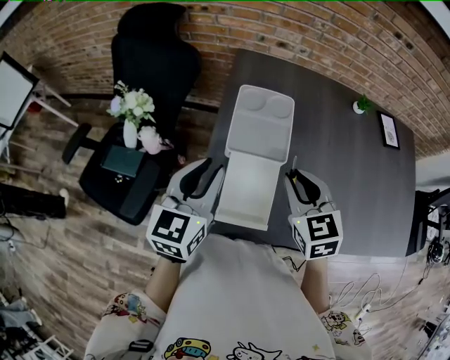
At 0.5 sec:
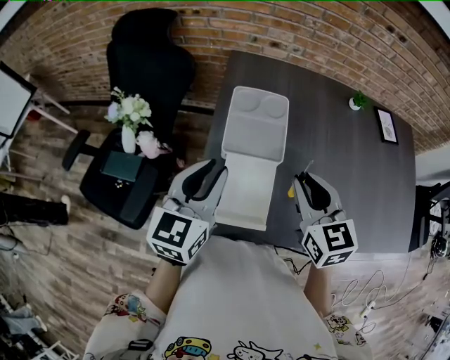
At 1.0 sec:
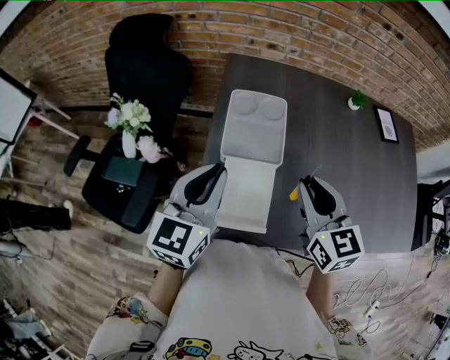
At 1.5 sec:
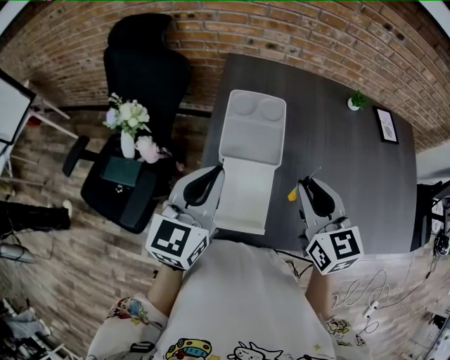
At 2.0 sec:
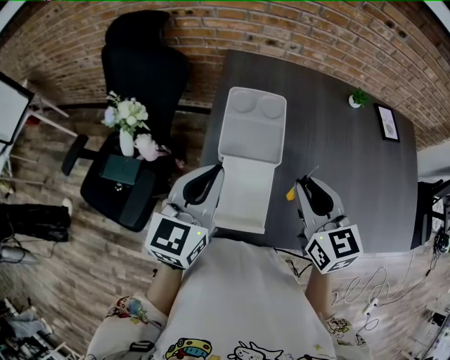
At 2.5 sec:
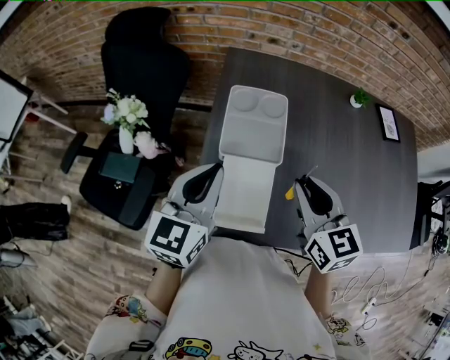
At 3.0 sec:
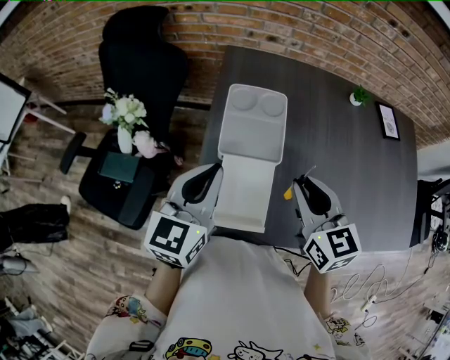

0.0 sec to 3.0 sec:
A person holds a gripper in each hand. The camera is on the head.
0.0 sec to 1.5 sec: The right gripper ends up roughly 5 cm from where it was. The left gripper closes.
1.5 sec to 3.0 sec: The grippers stay close to where they were, moving slightly.

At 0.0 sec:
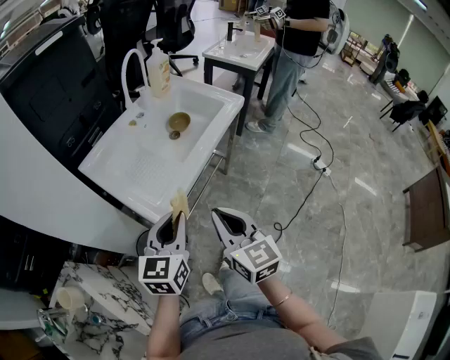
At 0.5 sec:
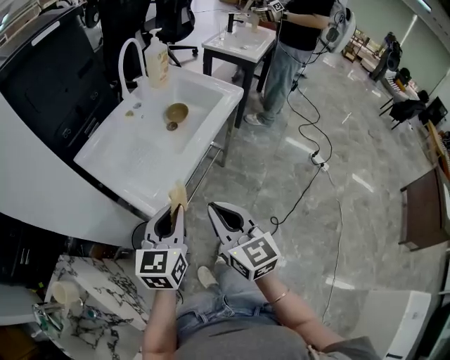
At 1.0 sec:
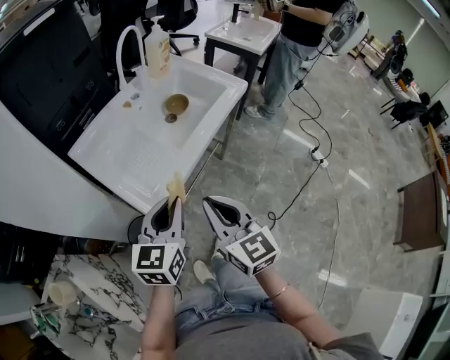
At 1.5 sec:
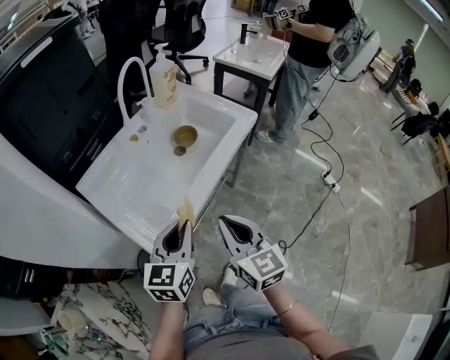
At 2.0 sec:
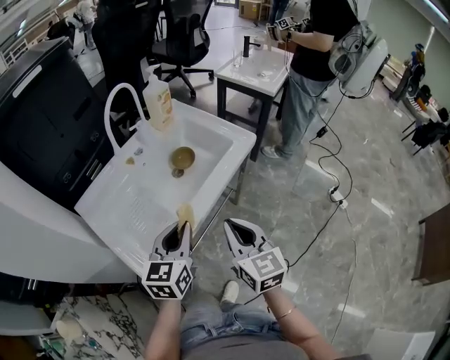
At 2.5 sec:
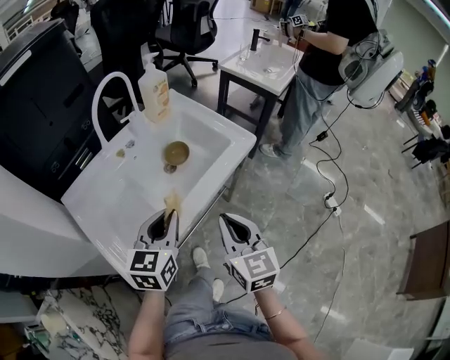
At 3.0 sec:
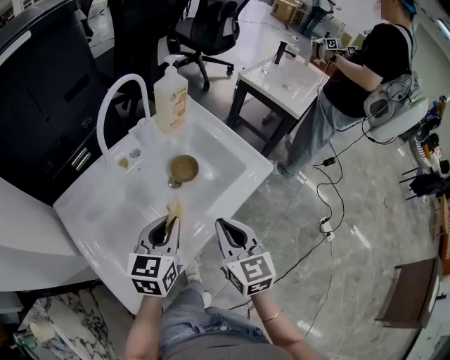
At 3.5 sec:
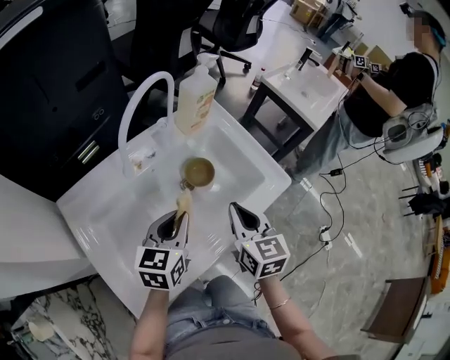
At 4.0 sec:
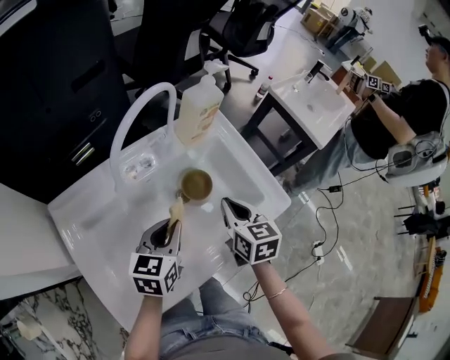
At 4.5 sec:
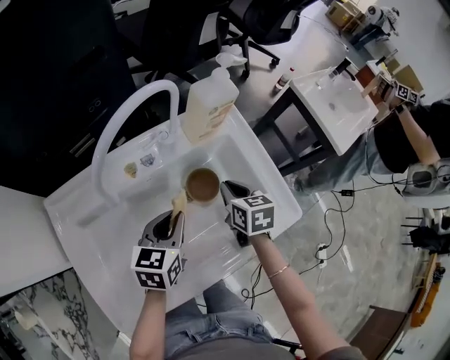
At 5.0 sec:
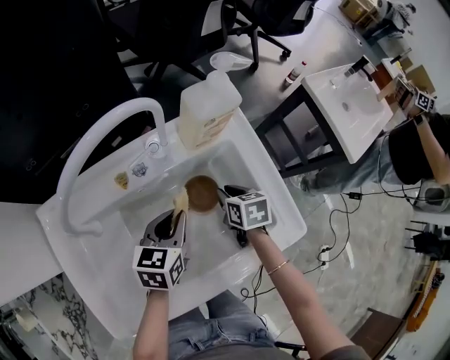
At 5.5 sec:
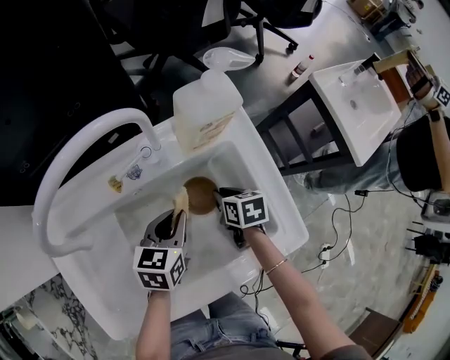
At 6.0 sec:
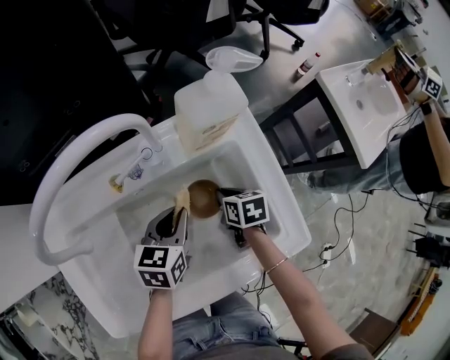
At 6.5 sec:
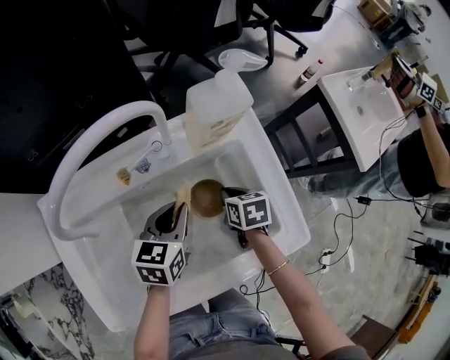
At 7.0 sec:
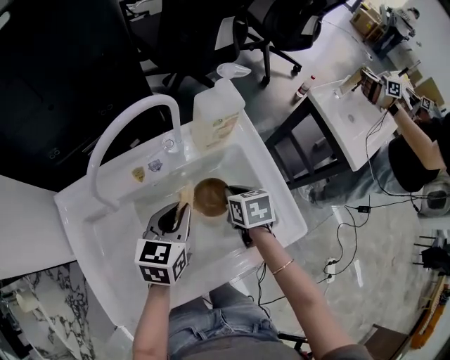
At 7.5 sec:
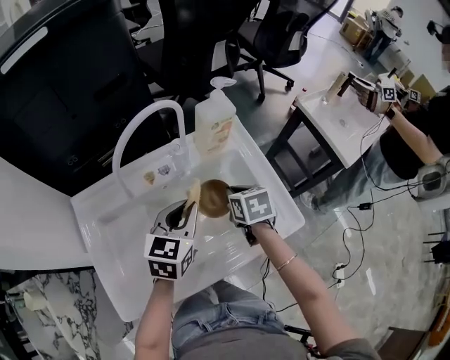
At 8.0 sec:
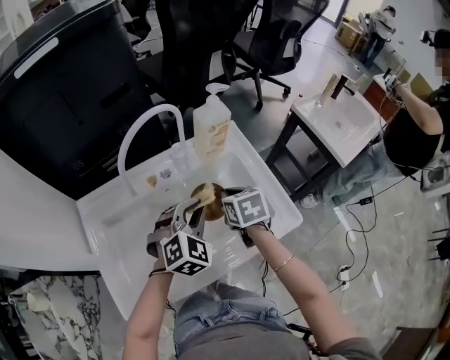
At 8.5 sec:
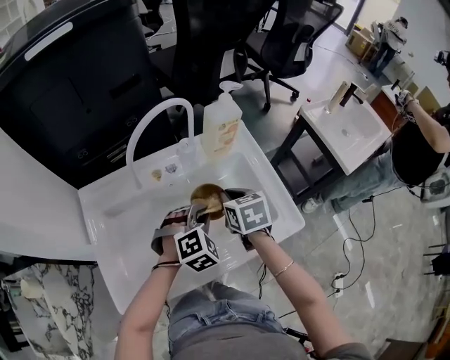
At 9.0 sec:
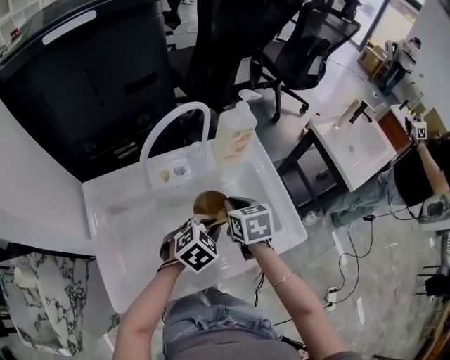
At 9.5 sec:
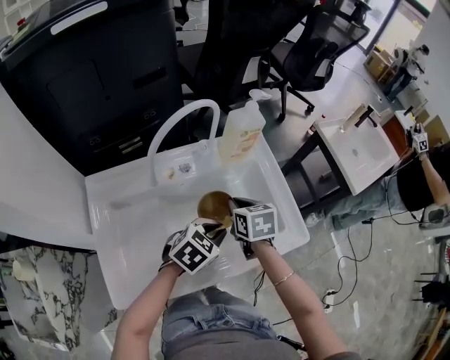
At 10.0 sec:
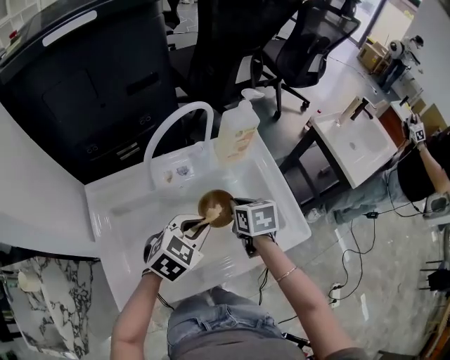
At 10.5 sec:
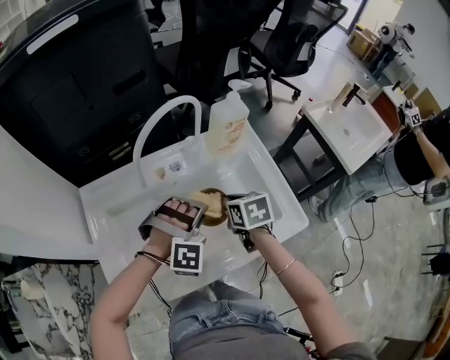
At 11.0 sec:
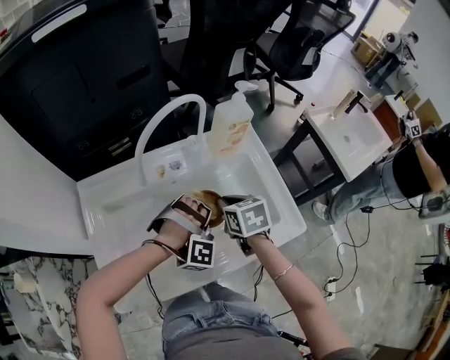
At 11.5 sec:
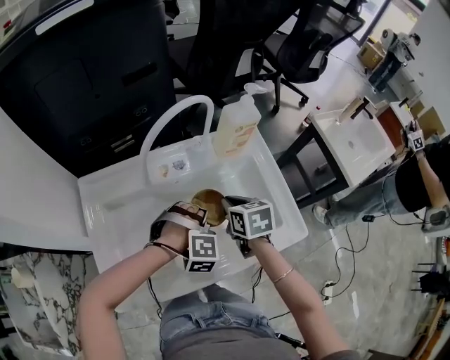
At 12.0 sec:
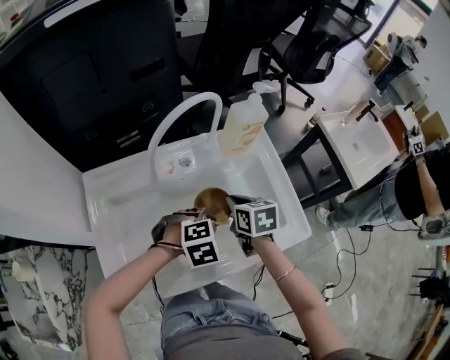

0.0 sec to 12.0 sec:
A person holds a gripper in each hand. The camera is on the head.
0.0 sec to 2.0 sec: The two grippers go about 20 cm forward and to the right.
2.0 sec to 4.0 sec: The two grippers go about 25 cm forward. The right gripper changes its angle by roughly 20 degrees.
4.0 sec to 6.0 sec: The right gripper heads downward and forward, covering roughly 25 cm, and rotates approximately 30 degrees. The left gripper goes some 15 cm forward, downward and to the right.
6.0 sec to 8.0 sec: The right gripper travels upward by approximately 20 cm, and swivels roughly 20 degrees. The left gripper is displaced upward and backward by approximately 15 cm, and rotates around the line of its fingers by about 60 degrees, clockwise from behind.
8.0 sec to 10.0 sec: The left gripper moves about 5 cm, and swivels roughly 30 degrees.
10.0 sec to 12.0 sec: The left gripper moves downward, roughly 5 cm, and turns by roughly 30 degrees.

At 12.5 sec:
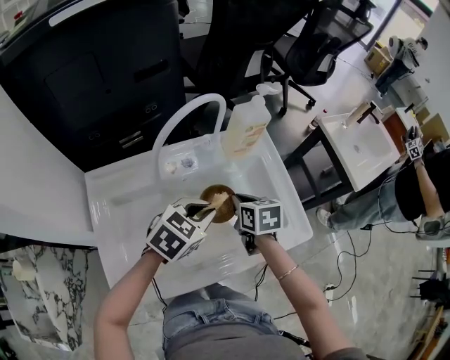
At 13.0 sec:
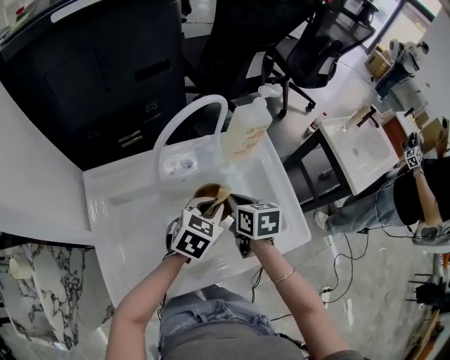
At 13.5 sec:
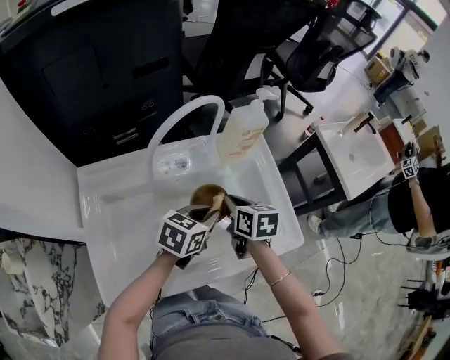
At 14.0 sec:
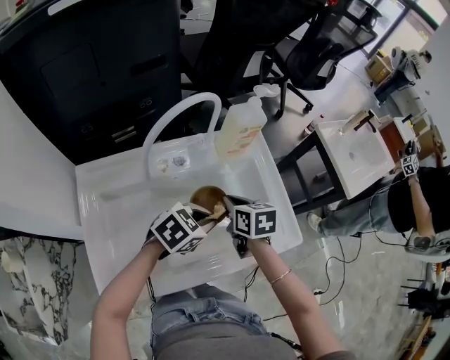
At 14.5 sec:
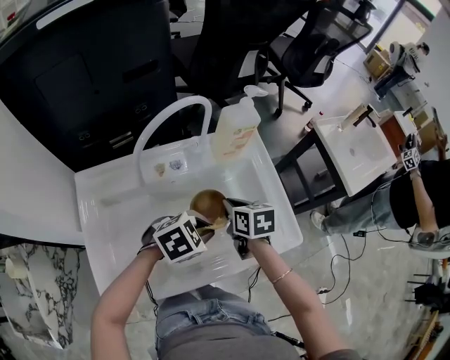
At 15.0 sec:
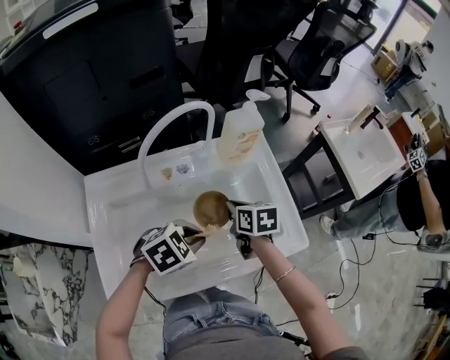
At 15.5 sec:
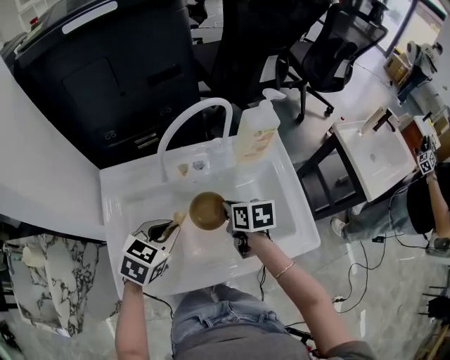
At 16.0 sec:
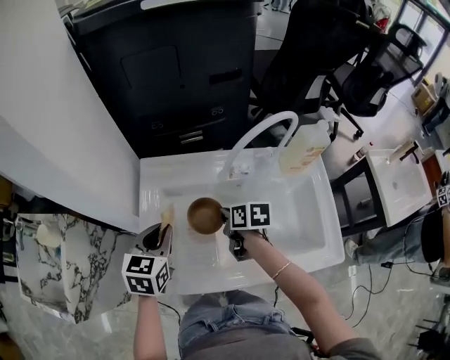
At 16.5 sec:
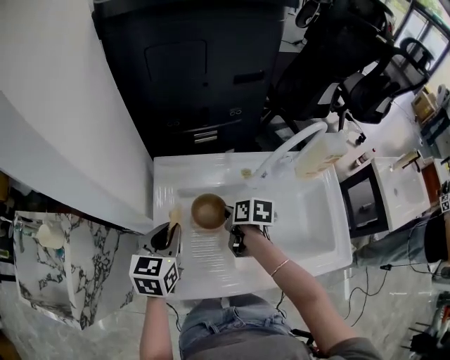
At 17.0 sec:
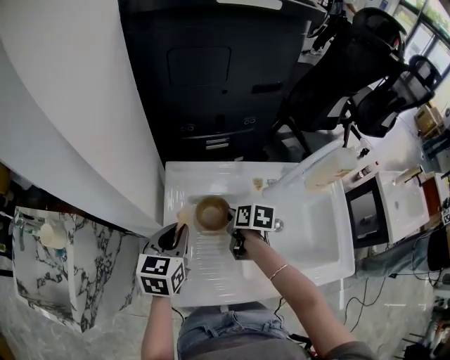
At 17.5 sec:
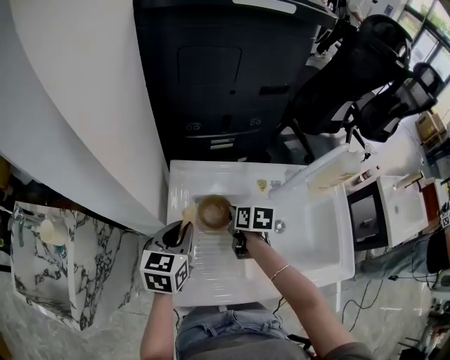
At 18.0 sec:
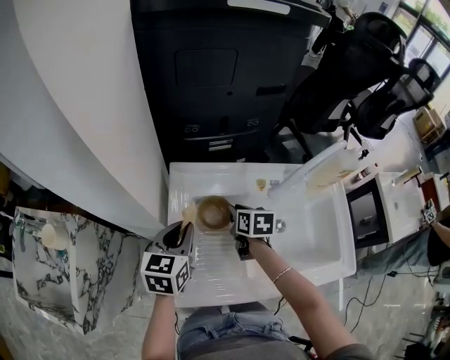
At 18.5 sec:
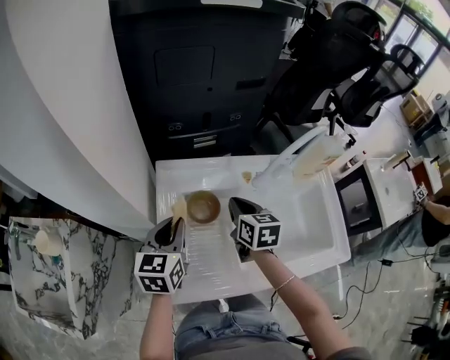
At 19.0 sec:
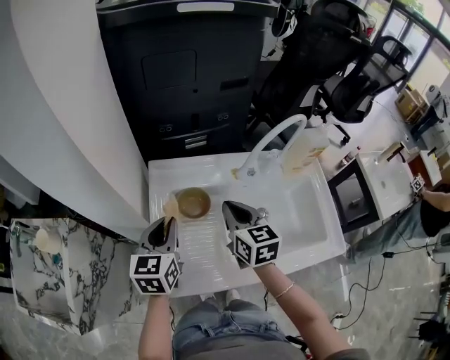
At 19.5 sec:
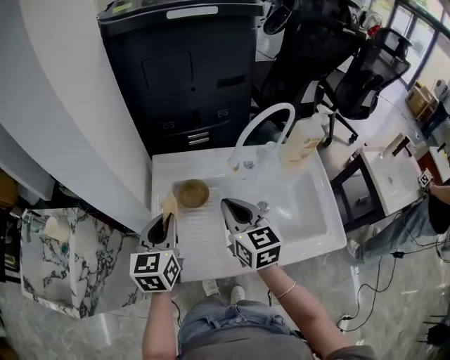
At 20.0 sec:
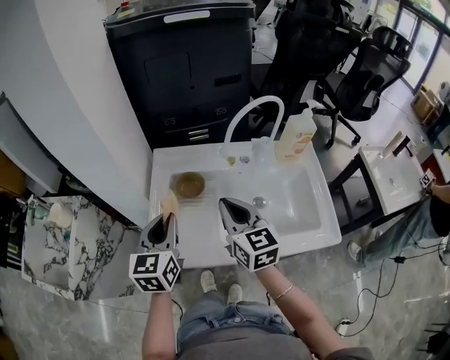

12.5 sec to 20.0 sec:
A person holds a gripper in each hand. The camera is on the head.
12.5 sec to 14.5 sec: The left gripper is displaced to the right by approximately 5 cm, and swivels about 20 degrees.
14.5 sec to 16.5 sec: The right gripper shifts by approximately 25 cm, and turns by roughly 20 degrees. The left gripper shifts by roughly 35 cm, and changes its angle by approximately 80 degrees.
16.5 sec to 18.0 sec: There are only small adjustments of the grippers.
18.0 sec to 20.0 sec: The left gripper is displaced backward and upward by roughly 15 cm. The right gripper shifts some 25 cm upward and backward, and tilts its fingers some 40 degrees upward.

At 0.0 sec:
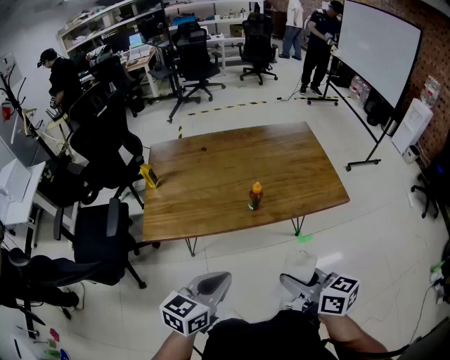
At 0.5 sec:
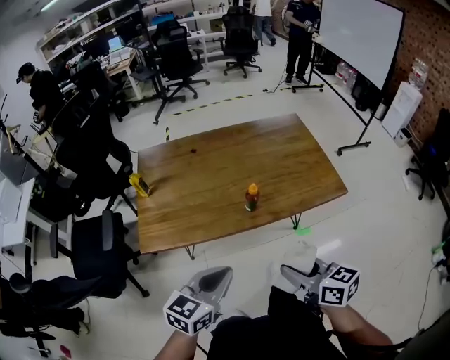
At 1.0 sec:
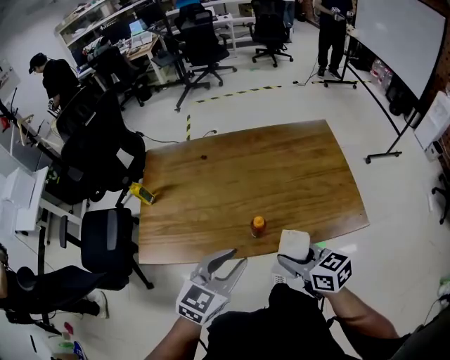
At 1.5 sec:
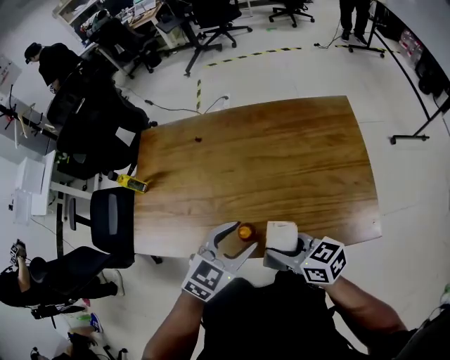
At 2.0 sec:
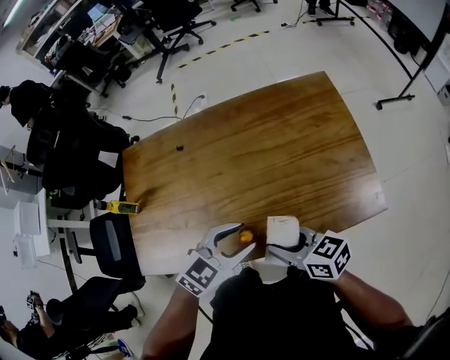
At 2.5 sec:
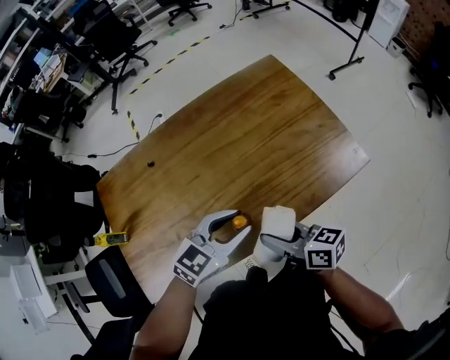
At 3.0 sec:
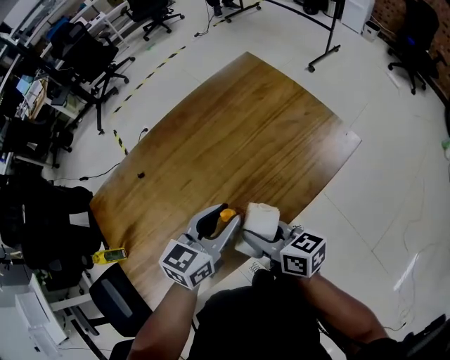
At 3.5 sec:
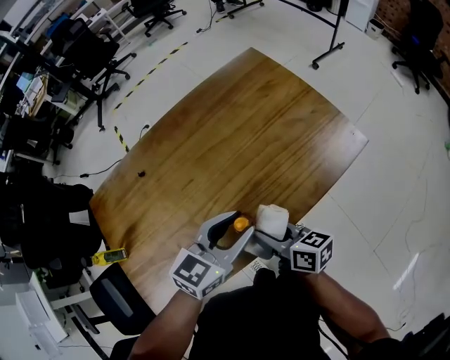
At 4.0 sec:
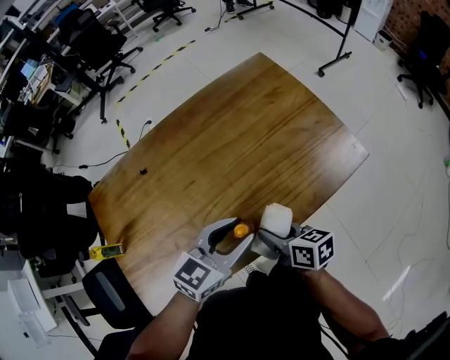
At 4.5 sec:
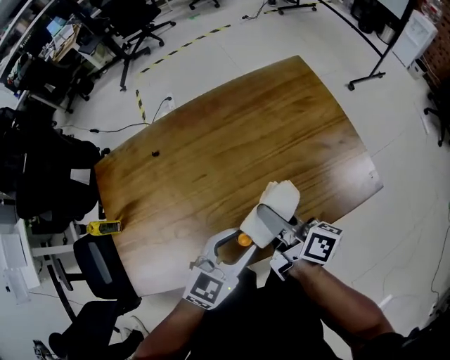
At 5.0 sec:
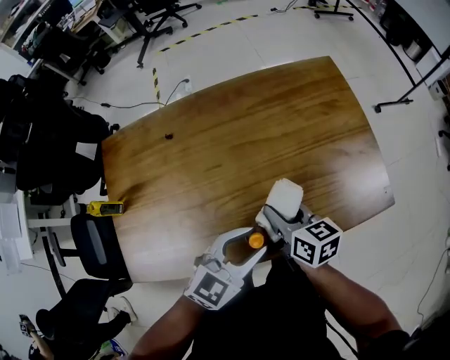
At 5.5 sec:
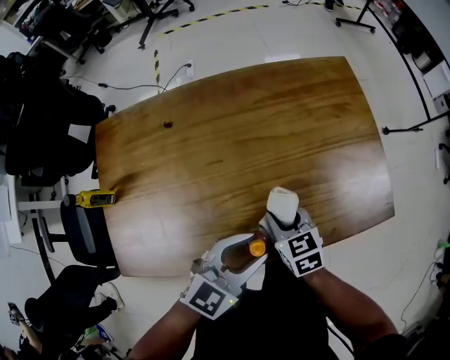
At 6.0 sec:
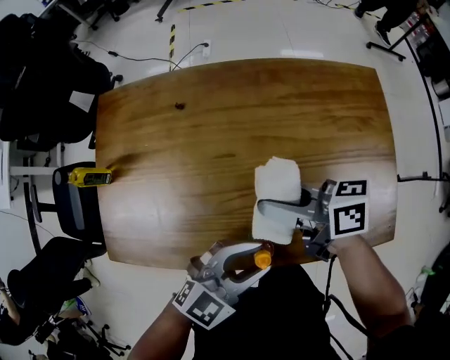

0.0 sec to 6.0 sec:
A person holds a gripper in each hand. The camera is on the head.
0.0 sec to 2.0 sec: The right gripper heads forward and downward, covering roughly 30 cm. Meanwhile the left gripper heads forward and to the right, covering about 35 cm, swivels approximately 30 degrees, and opens its fingers.
2.0 sec to 4.0 sec: The right gripper travels downward by about 5 cm, and swivels roughly 40 degrees.
4.0 sec to 6.0 sec: The right gripper swings up and down, about 10 cm each way, with 2 reversals, and swivels roughly 50 degrees.
